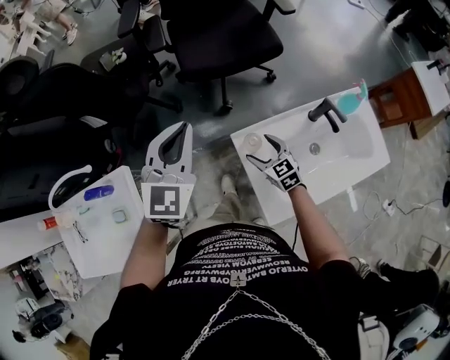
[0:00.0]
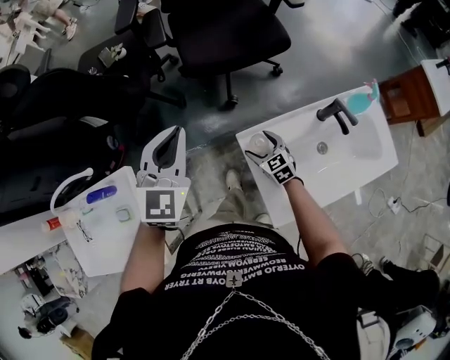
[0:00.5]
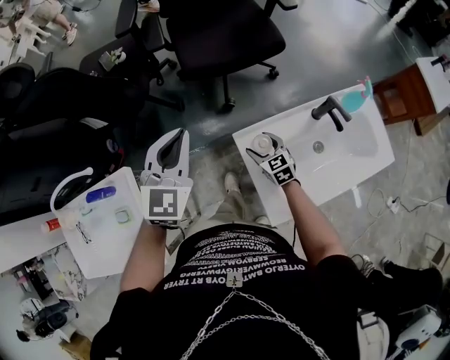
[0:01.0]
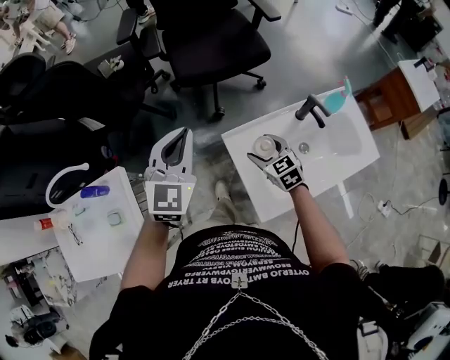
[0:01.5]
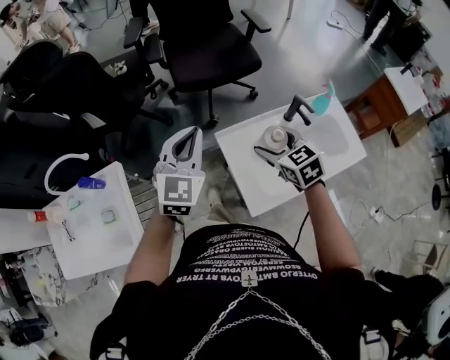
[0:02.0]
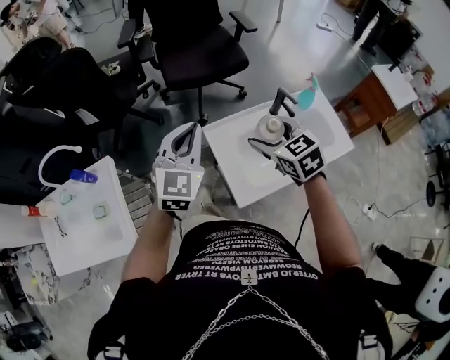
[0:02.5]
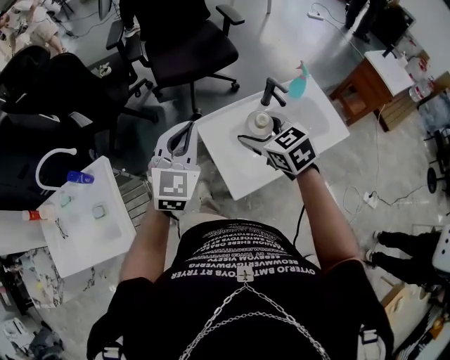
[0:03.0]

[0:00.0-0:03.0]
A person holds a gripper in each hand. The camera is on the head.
0:00.0 to 0:01.5: The right gripper heads upward, covering roughly 5 cm.
0:01.5 to 0:03.0: The left gripper is displaced backward and to the right by roughly 15 cm. Meanwhile the right gripper shifts roughly 25 cm upward and backward.

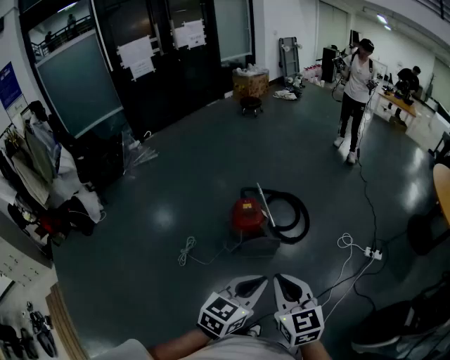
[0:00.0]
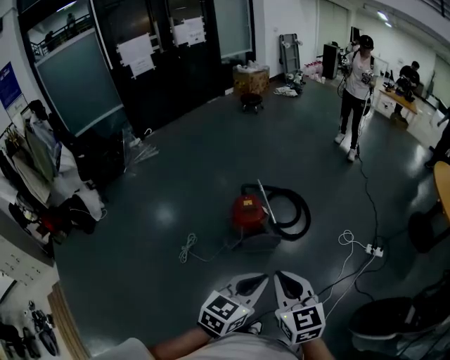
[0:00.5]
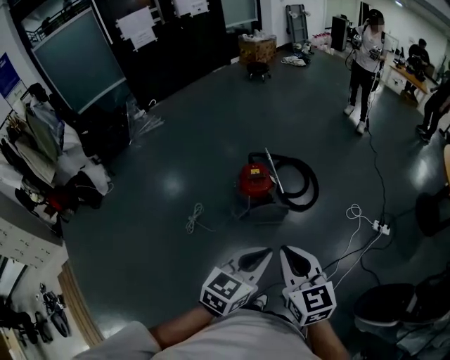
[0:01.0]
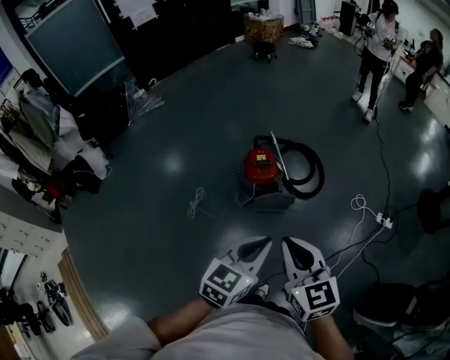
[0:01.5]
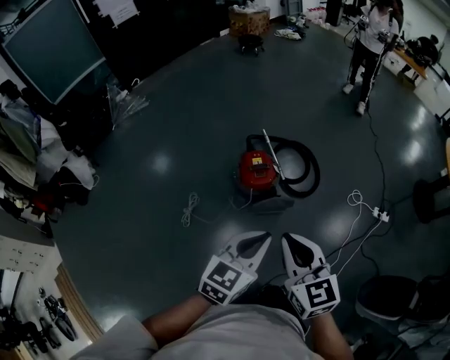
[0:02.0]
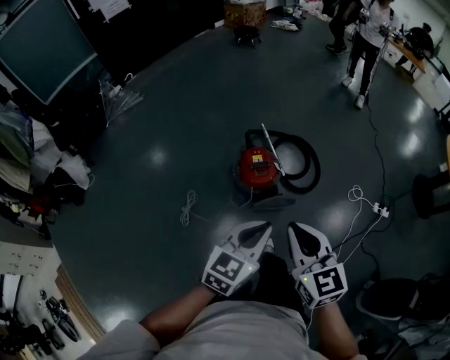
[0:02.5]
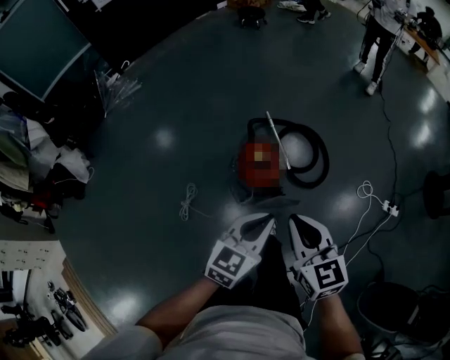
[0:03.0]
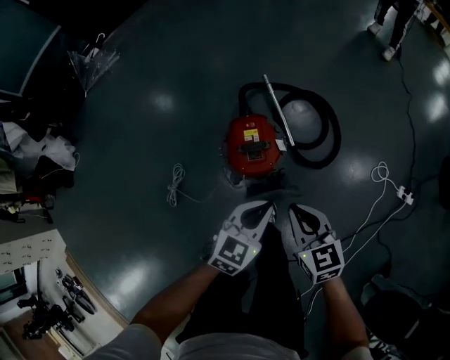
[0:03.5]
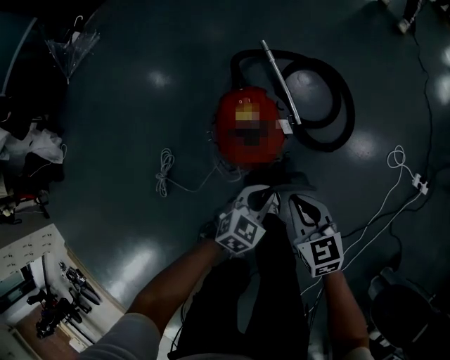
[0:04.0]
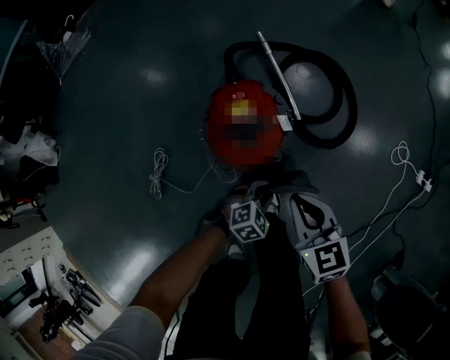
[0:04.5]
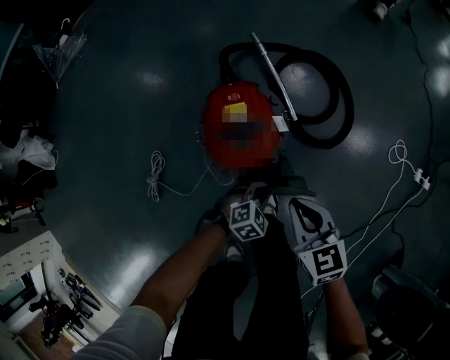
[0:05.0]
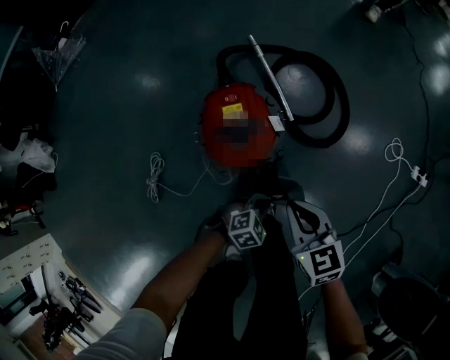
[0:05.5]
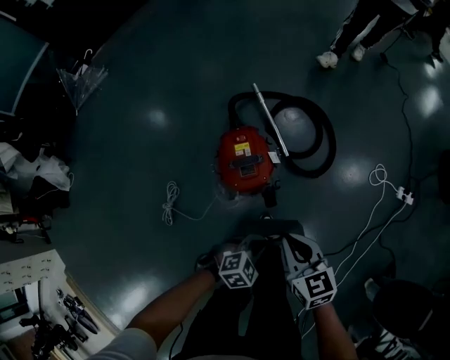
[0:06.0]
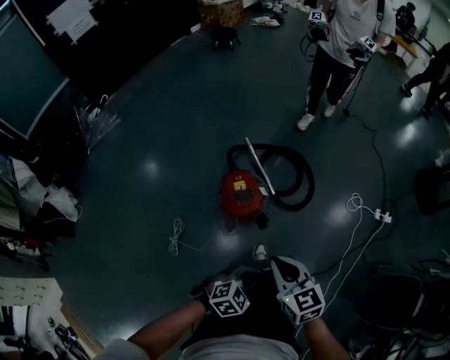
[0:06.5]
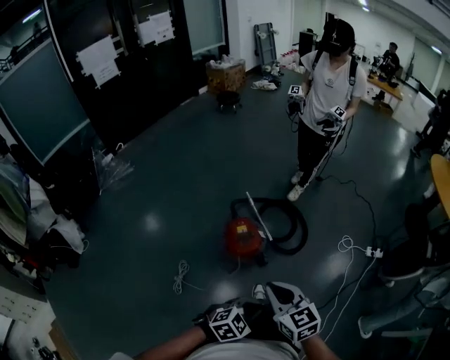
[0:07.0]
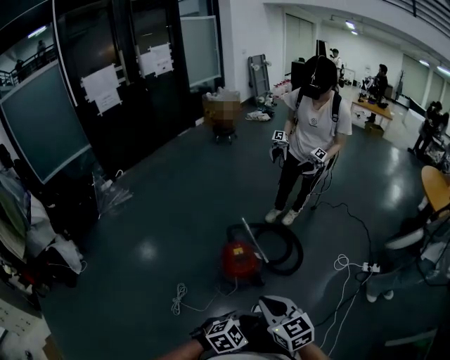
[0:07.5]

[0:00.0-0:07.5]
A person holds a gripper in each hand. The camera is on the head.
0:00.0 to 0:02.0: The two grippers go approximately 15 cm forward and to the left.
0:02.0 to 0:04.0: The two grippers go approximately 60 cm downward and forward. The right gripper turns by approximately 20 degrees; the left gripper changes its angle by about 30 degrees.
0:04.0 to 0:05.5: The left gripper is displaced downward and backward by approximately 15 cm, and turns by some 30 degrees.
0:05.5 to 0:07.5: Both grippers move upward and backward, approximately 60 cm.

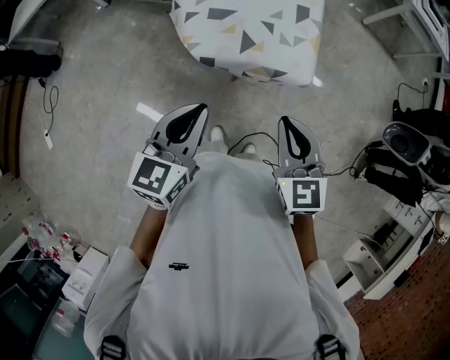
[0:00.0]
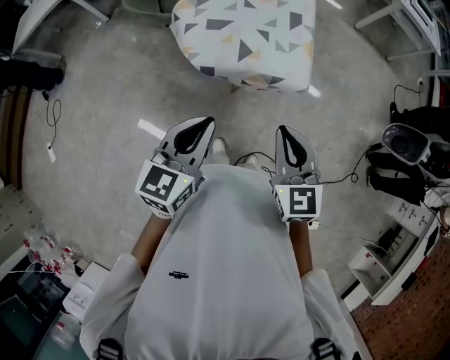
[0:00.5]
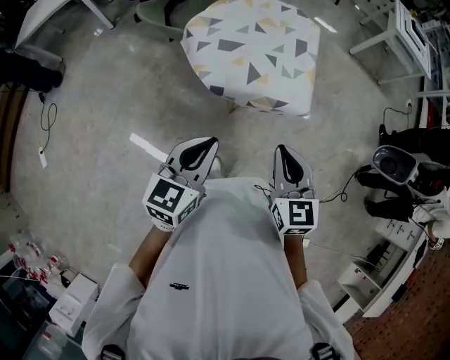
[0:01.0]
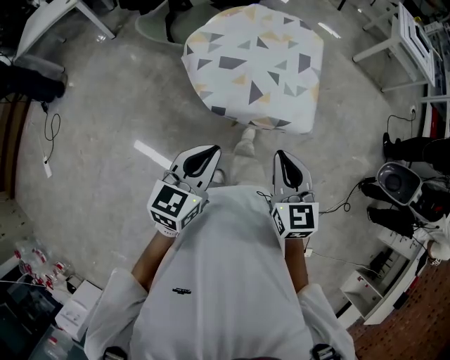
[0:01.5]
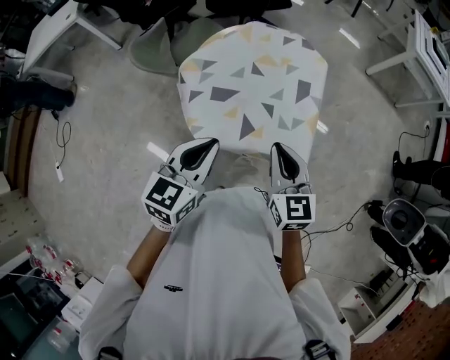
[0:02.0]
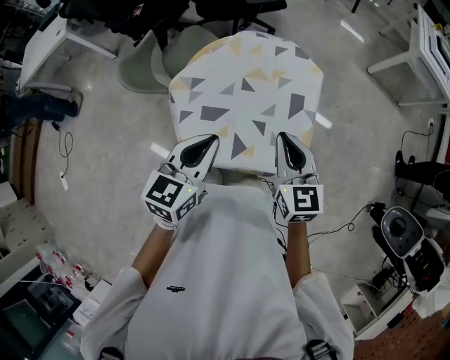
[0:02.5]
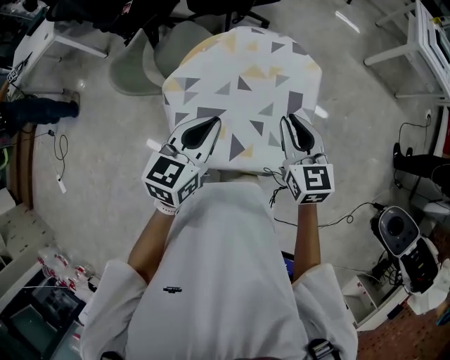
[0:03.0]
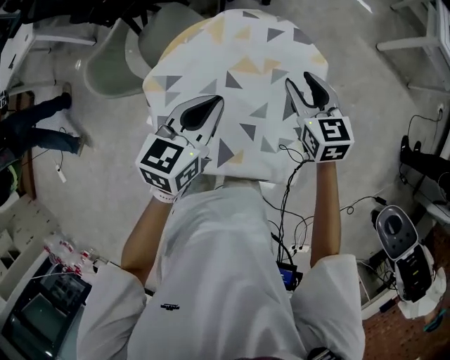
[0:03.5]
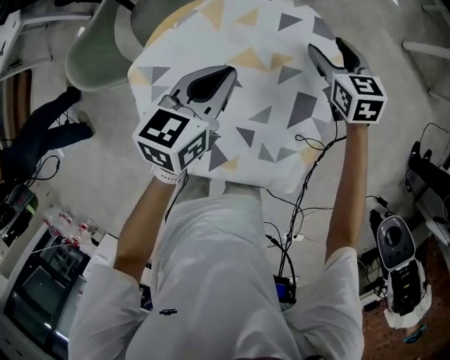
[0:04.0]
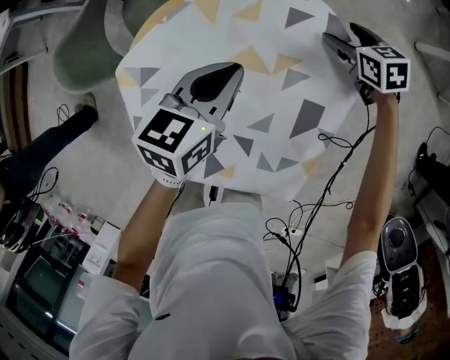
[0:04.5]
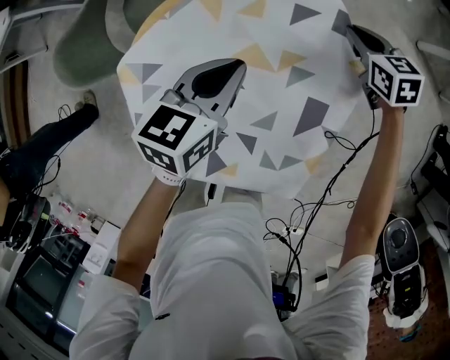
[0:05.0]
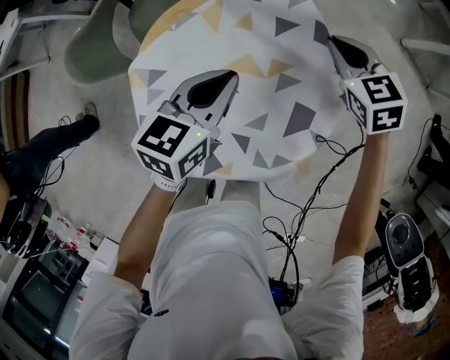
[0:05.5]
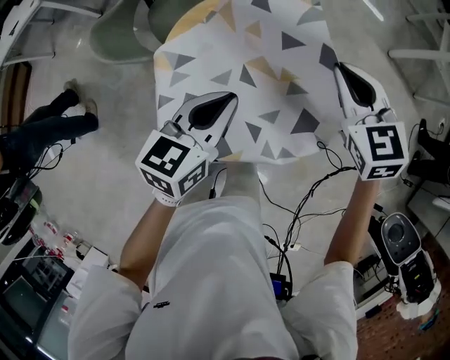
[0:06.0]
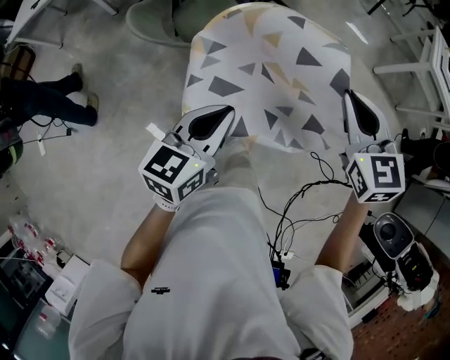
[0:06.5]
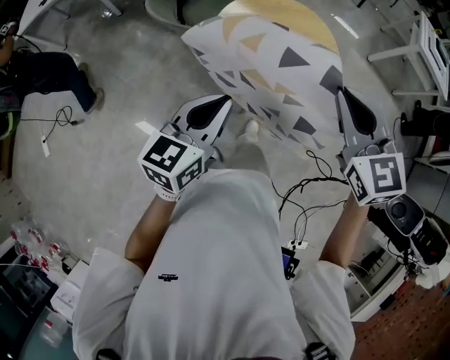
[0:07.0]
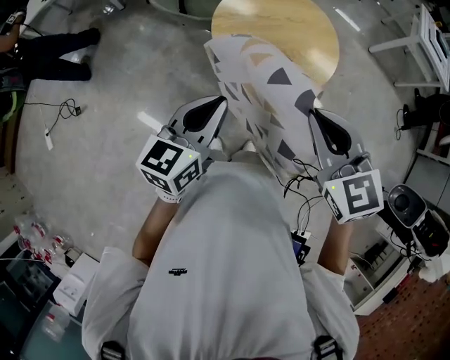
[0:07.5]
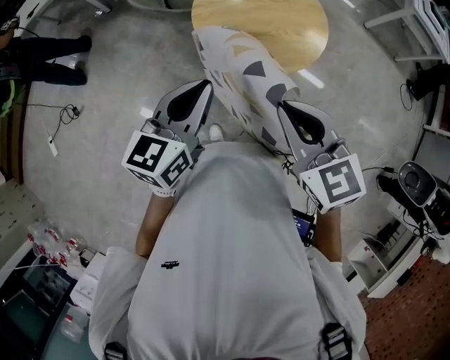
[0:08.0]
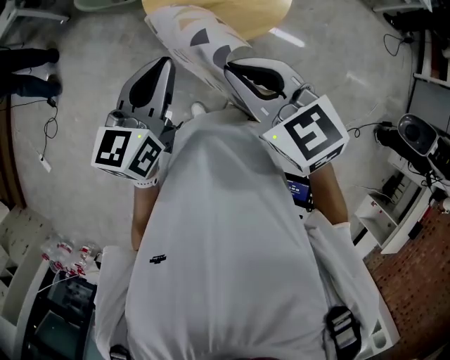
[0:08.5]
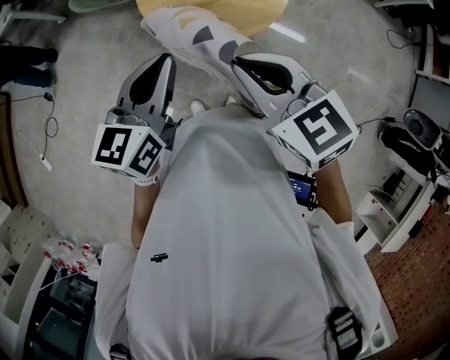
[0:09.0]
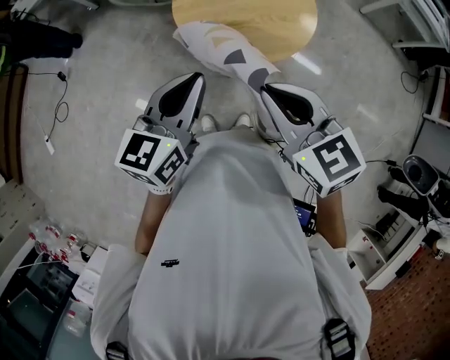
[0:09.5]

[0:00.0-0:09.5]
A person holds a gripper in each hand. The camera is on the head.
0:00.0 to 0:02.0: The grippers both shift forward by some 20 cm.
0:02.0 to 0:04.0: Both grippers travel together forward and downward, approximately 50 cm. The right gripper rotates approximately 20 degrees, and opens up.
0:04.0 to 0:05.5: Both grippers travel together backward, about 5 cm. The right gripper goes downward and returns, roughly 10 cm each way, and closes up.
0:05.5 to 0:07.5: The pair of grippers is taken backward and to the left, approximately 50 cm. The right gripper goes some 25 cm upward.
0:07.5 to 0:09.5: The right gripper changes place by roughly 5 cm; the left gripper heads to the right, covering about 10 cm.

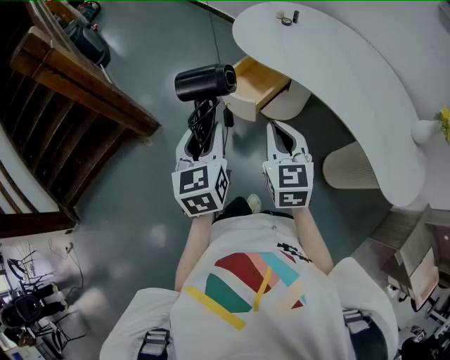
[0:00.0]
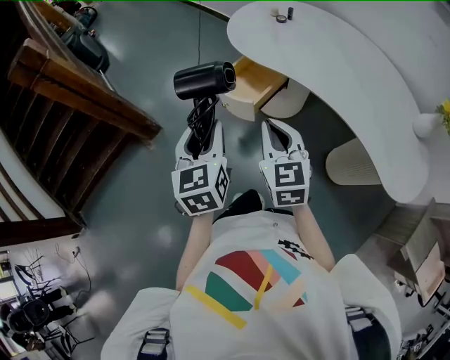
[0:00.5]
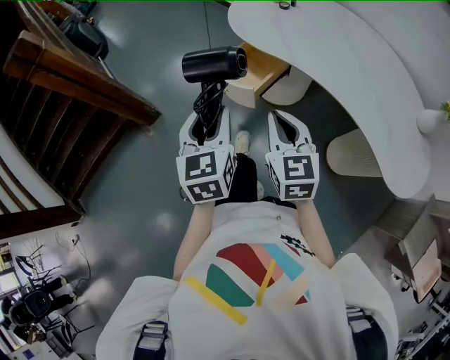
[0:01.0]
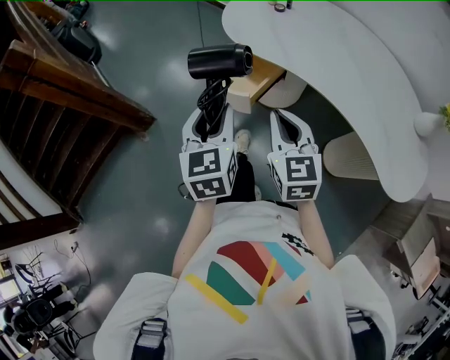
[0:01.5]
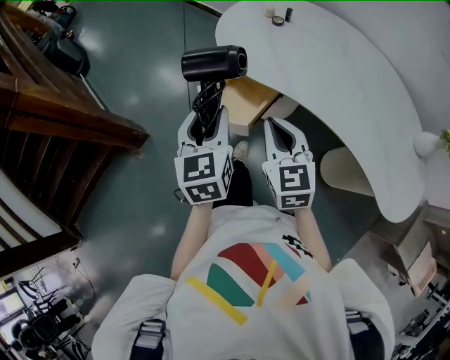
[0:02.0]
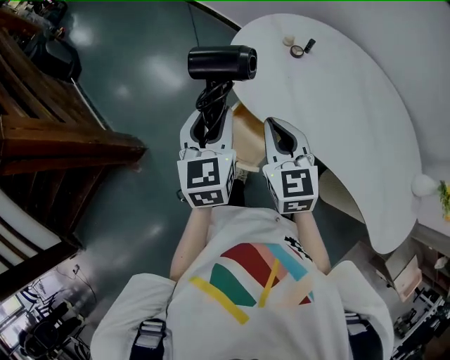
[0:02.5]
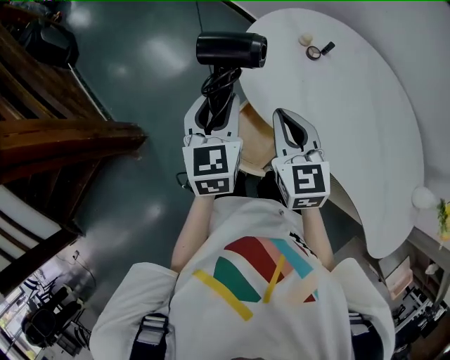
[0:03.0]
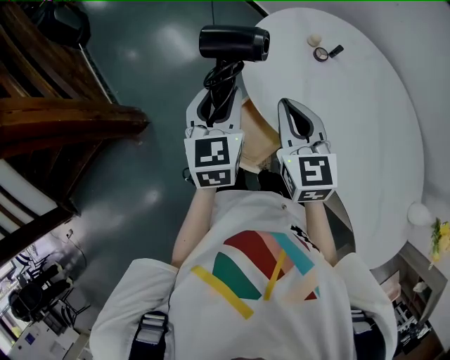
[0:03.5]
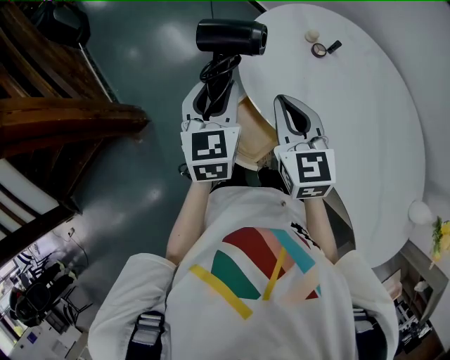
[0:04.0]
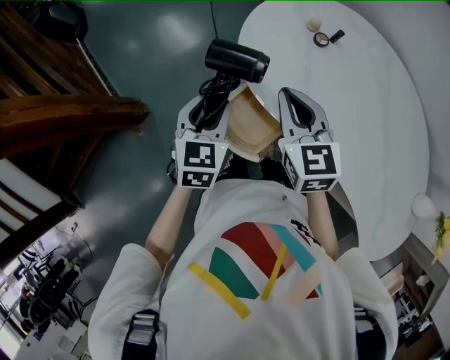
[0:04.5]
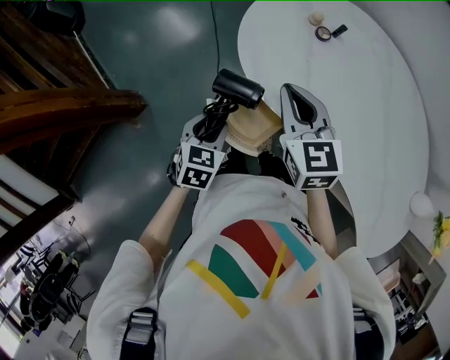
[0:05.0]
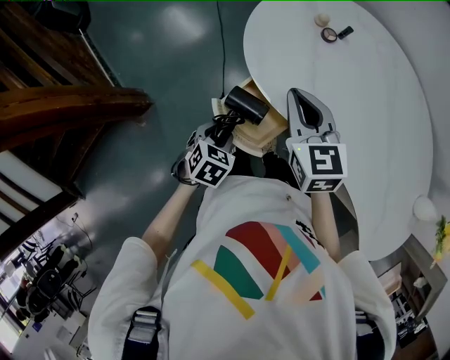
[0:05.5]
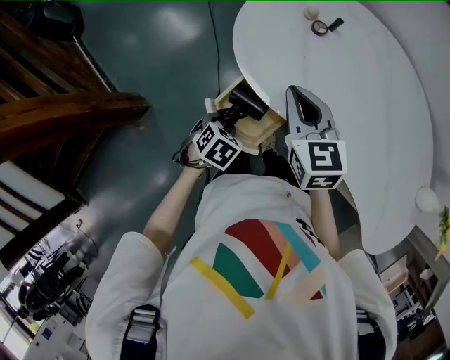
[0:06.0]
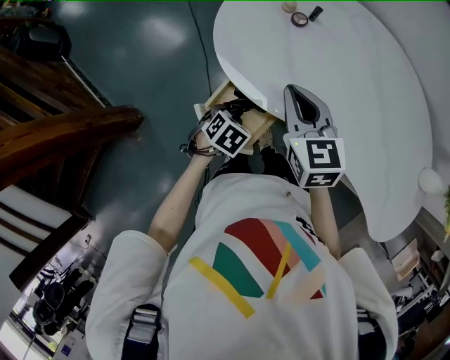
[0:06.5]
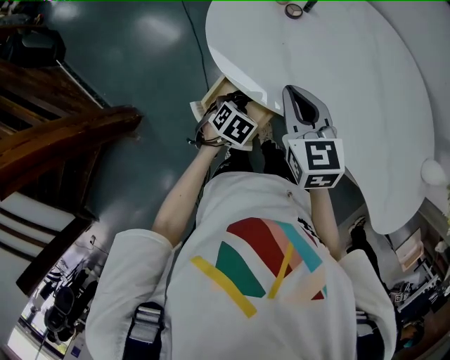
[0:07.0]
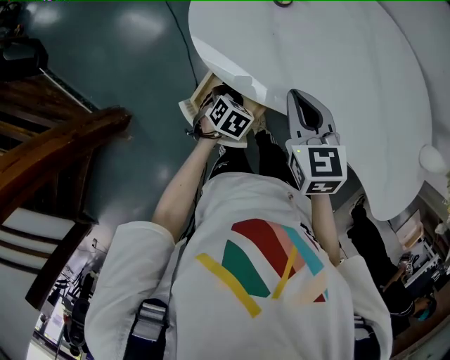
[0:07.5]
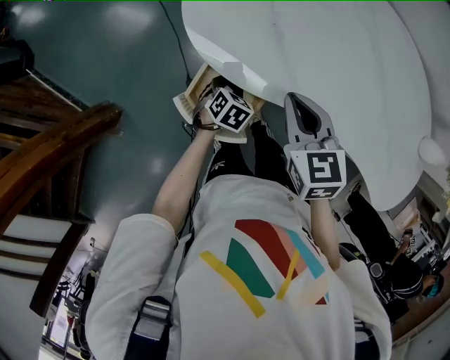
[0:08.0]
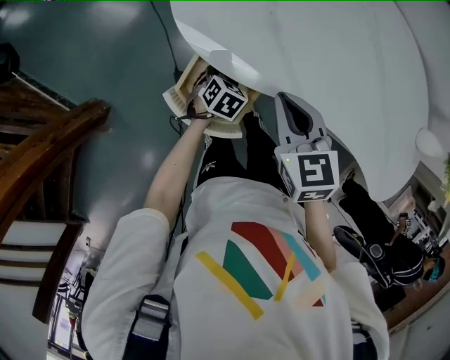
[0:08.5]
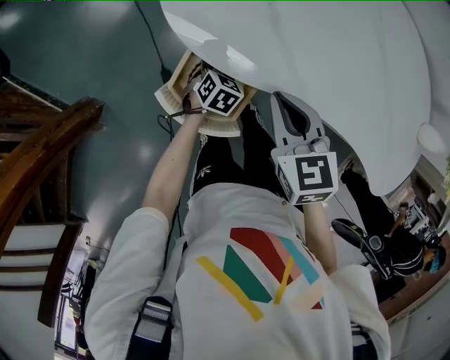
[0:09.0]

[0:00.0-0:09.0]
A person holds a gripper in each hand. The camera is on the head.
0:00.0 to 0:02.0: Both grippers travel together forward, about 15 cm.
0:02.0 to 0:04.5: The two grippers go roughly 25 cm forward. The left gripper swivels some 20 degrees.
0:04.5 to 0:07.0: The right gripper goes roughly 5 cm to the right, while the left gripper heads downward and to the right, covering roughly 25 cm, and tilts its fingers roughly 40 degrees downward.
0:07.0 to 0:09.0: The left gripper is displaced downward and forward by approximately 10 cm, while the right gripper heads downward, covering approximately 10 cm.
